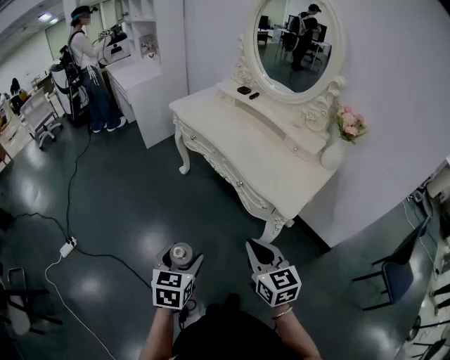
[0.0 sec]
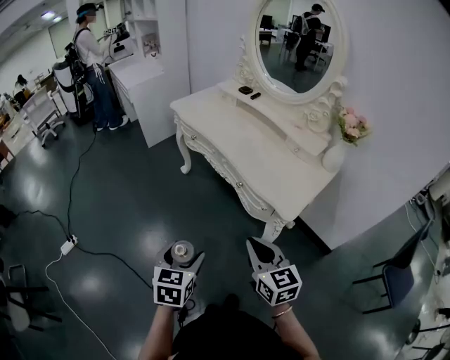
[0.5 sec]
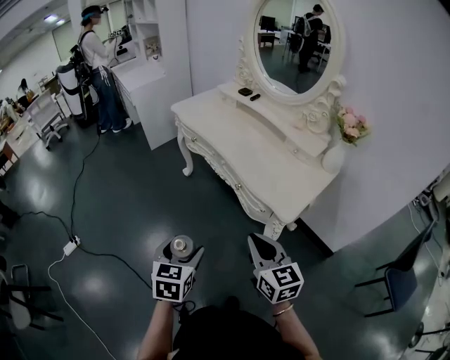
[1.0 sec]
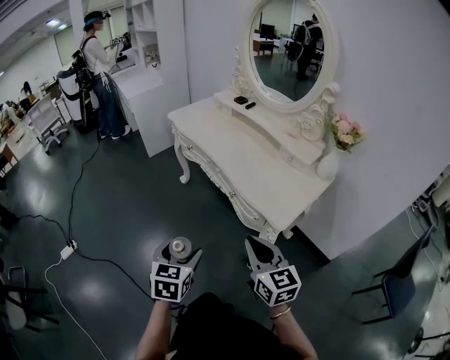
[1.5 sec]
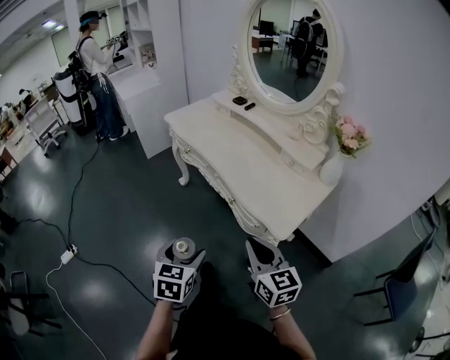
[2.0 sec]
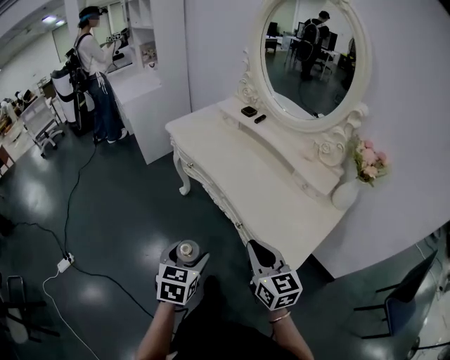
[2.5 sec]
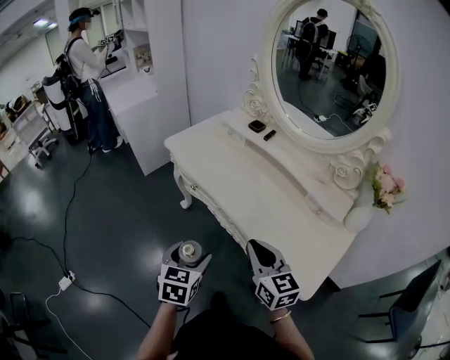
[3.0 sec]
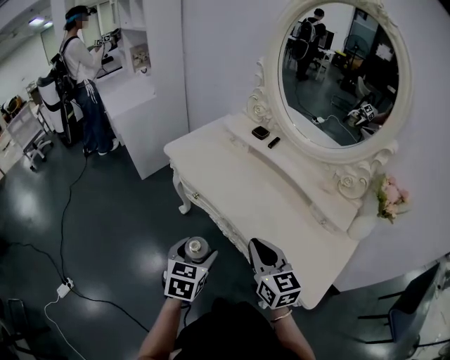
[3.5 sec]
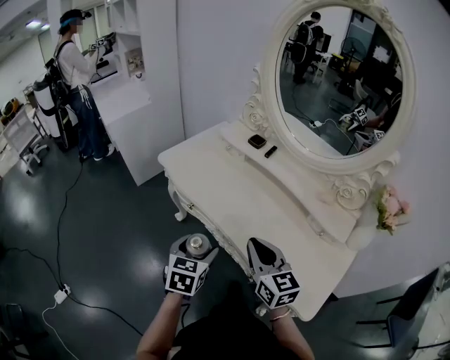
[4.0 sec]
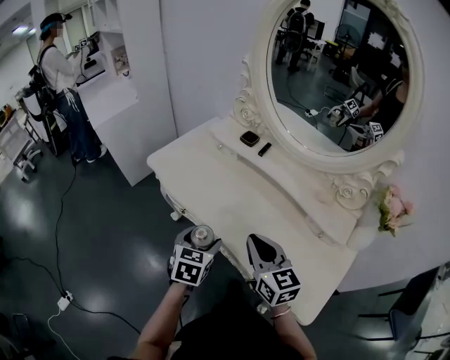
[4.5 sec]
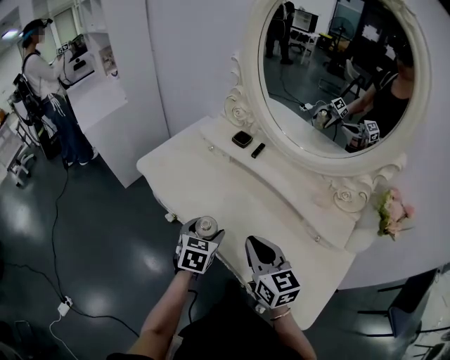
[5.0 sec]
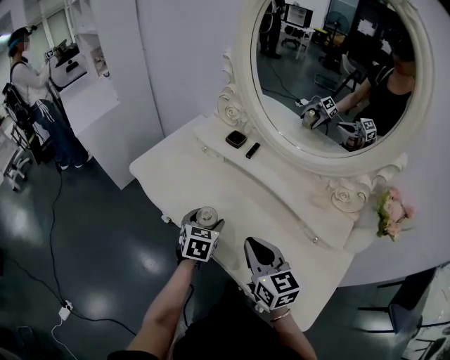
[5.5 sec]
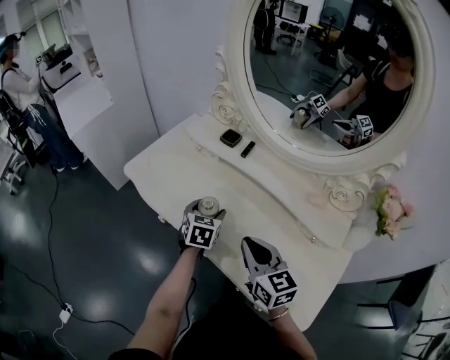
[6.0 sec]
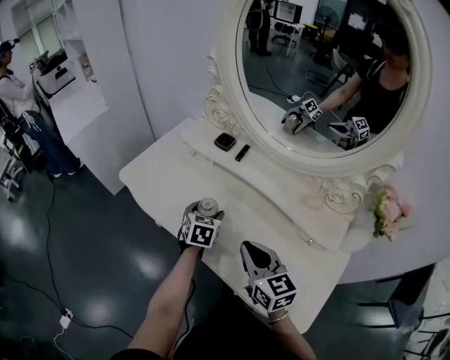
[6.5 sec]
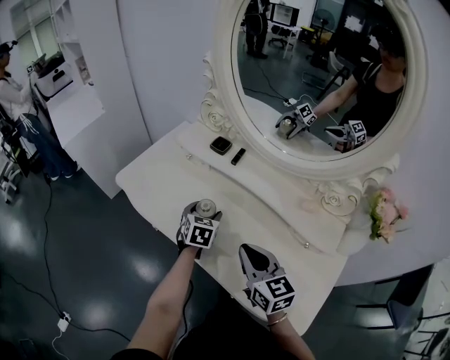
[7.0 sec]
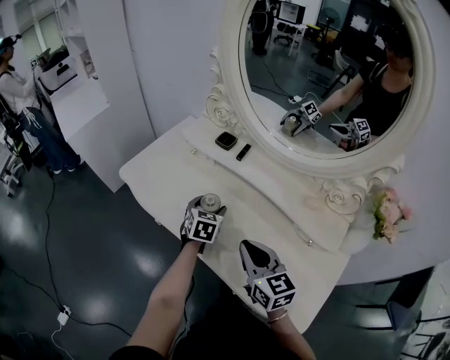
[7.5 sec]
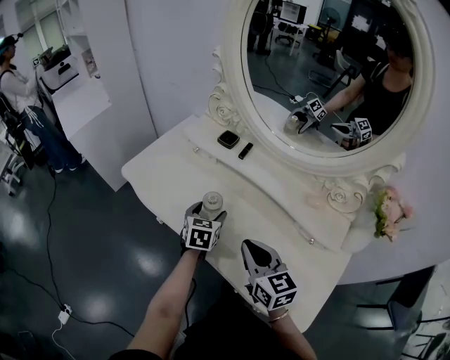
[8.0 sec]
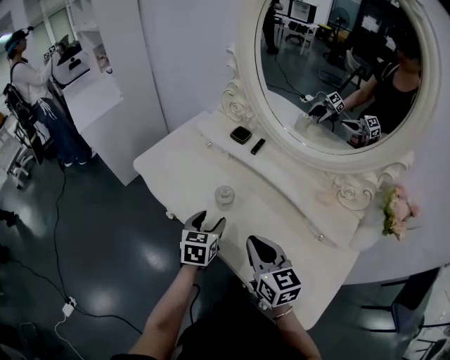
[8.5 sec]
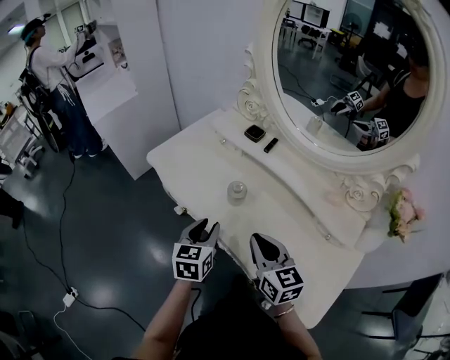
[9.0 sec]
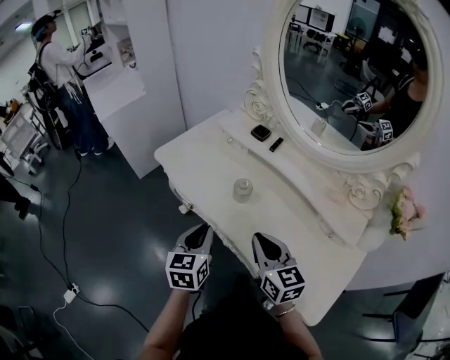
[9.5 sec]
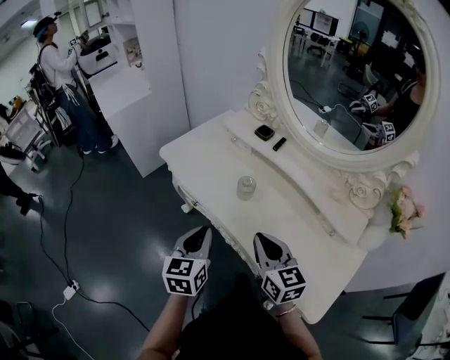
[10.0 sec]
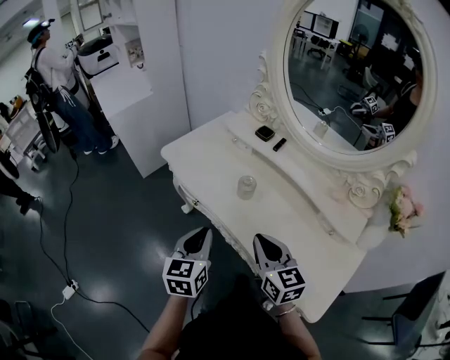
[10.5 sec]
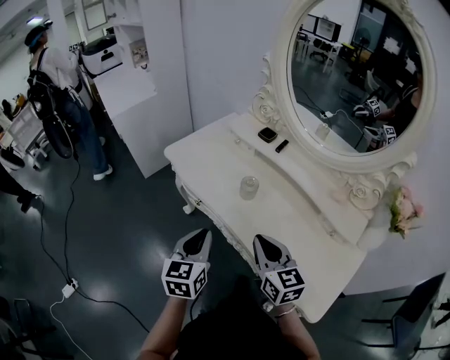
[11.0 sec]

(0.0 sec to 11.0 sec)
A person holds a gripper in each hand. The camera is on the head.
0.0 sec - 2.0 sec: The two grippers go approximately 10 cm forward and to the right.
2.0 sec - 3.5 sec: The two grippers go about 30 cm forward.
3.5 sec - 5.5 sec: The right gripper travels forward and to the right by approximately 15 cm; the left gripper heads forward and to the right, covering approximately 25 cm.
5.5 sec - 7.5 sec: The left gripper moves forward, approximately 5 cm.
7.5 sec - 9.0 sec: The left gripper shifts approximately 20 cm backward, to the left and upward, and closes up.
9.0 sec - 11.0 sec: The right gripper ends up about 5 cm from where it was, while the left gripper moves backward, to the left and upward, approximately 10 cm.

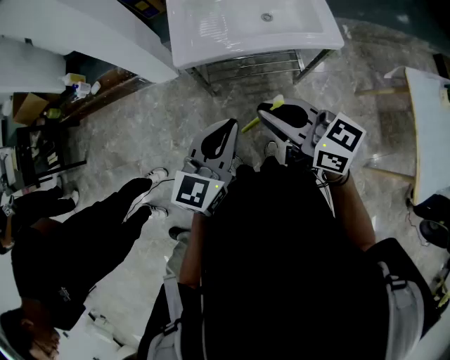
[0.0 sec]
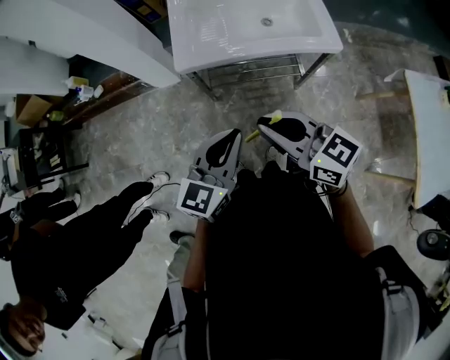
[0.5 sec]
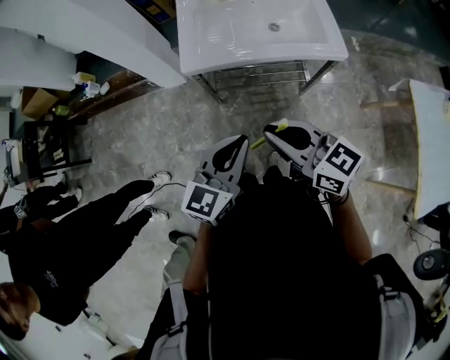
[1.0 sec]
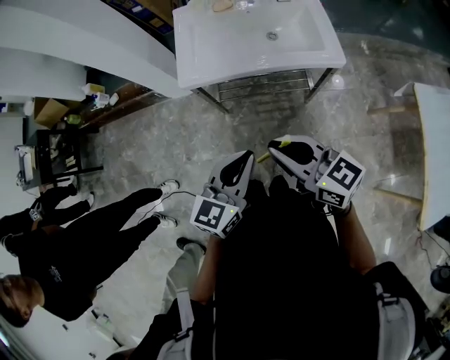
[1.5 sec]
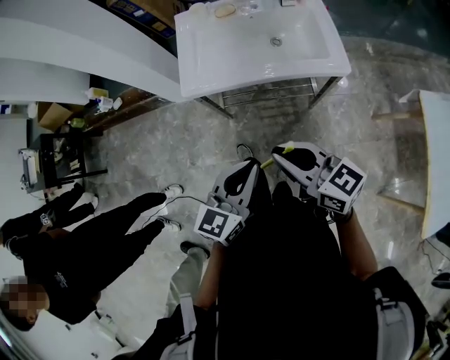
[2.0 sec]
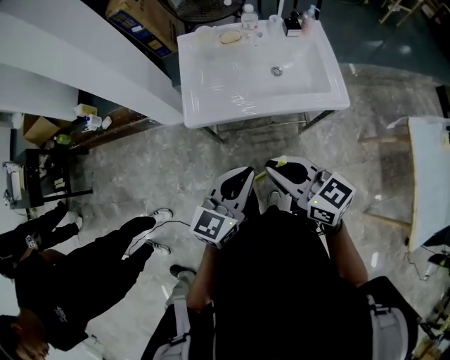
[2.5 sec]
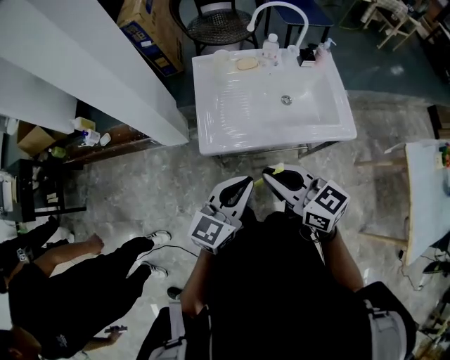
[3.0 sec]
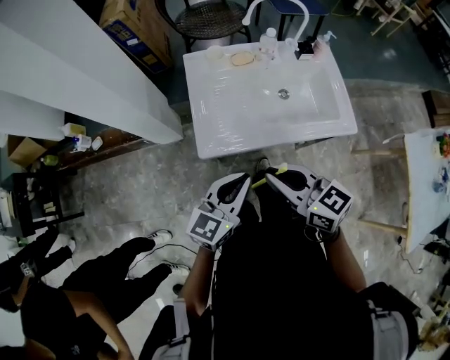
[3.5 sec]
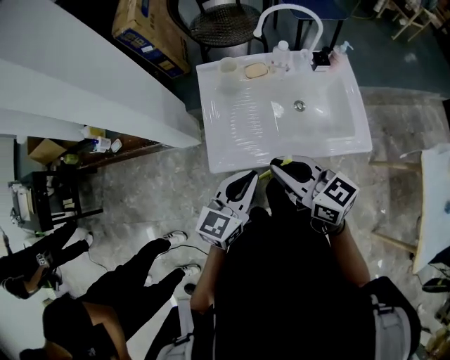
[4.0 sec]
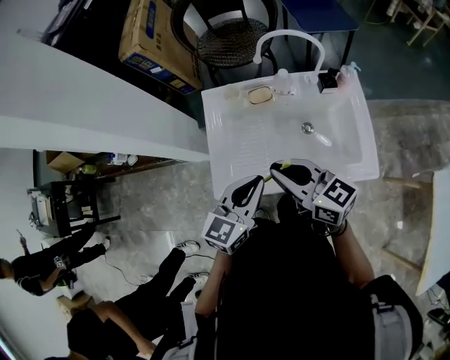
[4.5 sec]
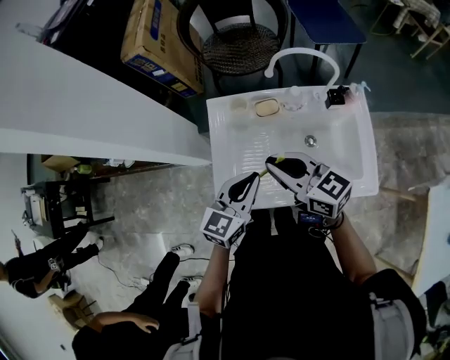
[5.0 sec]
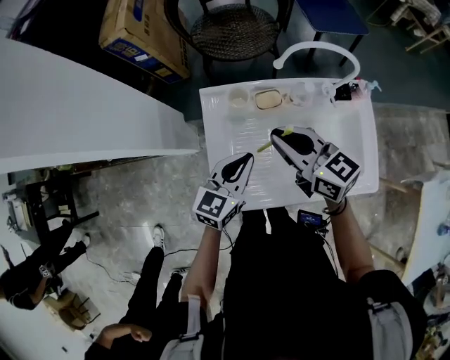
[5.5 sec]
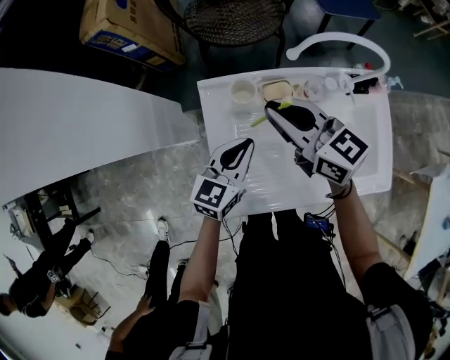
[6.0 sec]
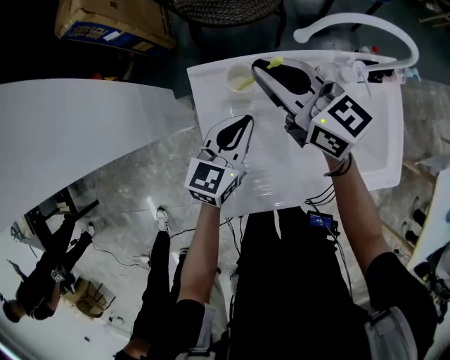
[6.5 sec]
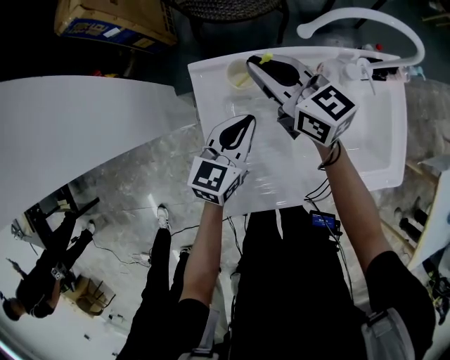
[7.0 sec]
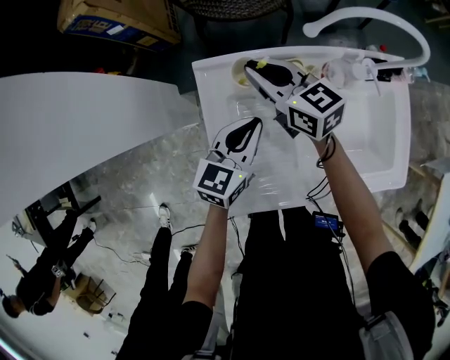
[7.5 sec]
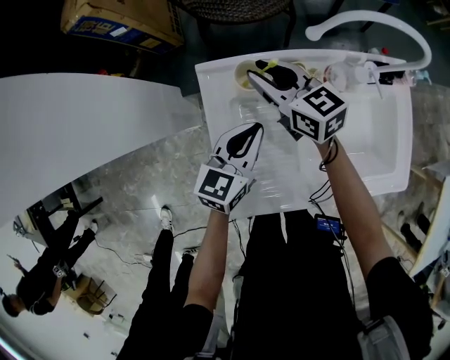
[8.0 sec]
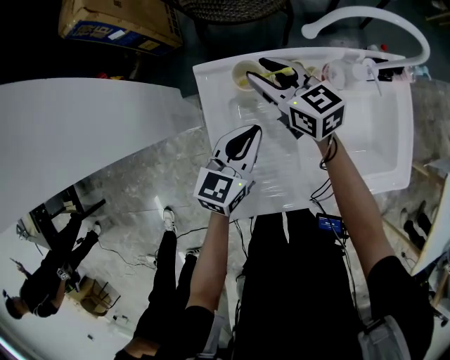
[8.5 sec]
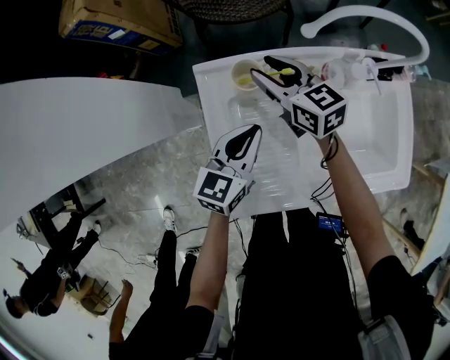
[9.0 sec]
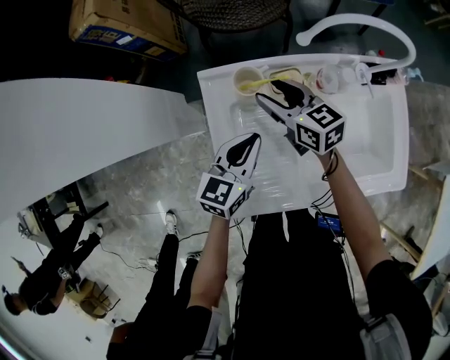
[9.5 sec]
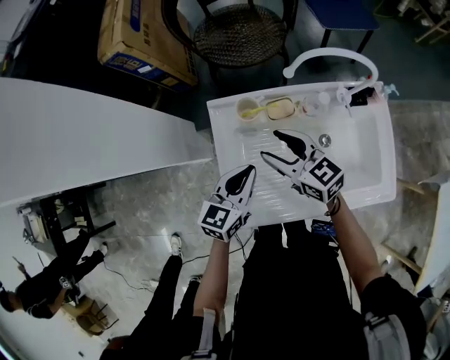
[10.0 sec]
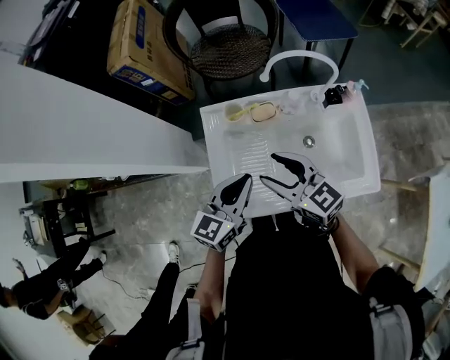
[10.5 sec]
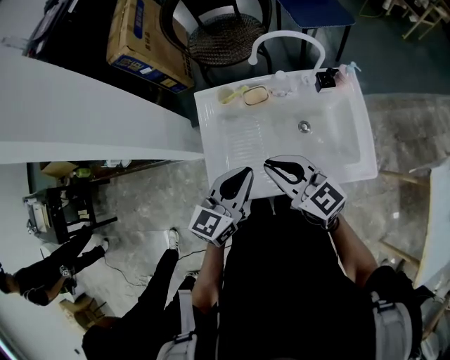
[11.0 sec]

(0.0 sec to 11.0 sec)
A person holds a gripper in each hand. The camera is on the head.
0.0 sec - 2.0 sec: The two grippers go roughly 5 cm to the right.
2.0 sec - 3.5 sec: The two grippers go about 25 cm forward and to the left.
3.5 sec - 5.5 sec: The two grippers go approximately 30 cm forward.
5.5 sec - 7.5 sec: The left gripper moves downward and forward, approximately 15 cm. The right gripper shifts roughly 20 cm forward and downward.
7.5 sec - 9.0 sec: The right gripper opens.
9.0 sec - 11.0 sec: The left gripper goes about 25 cm upward and backward. Meanwhile the right gripper travels backward and upward by roughly 35 cm, and closes up.

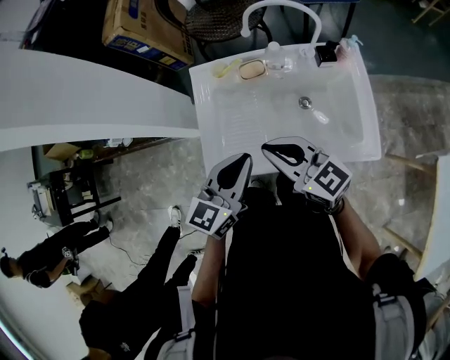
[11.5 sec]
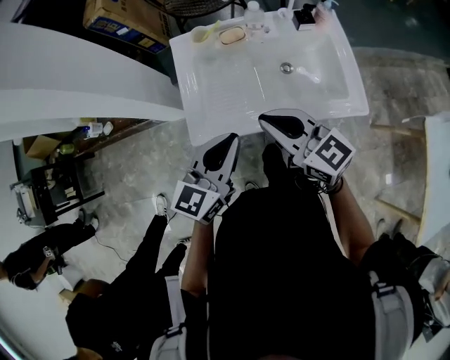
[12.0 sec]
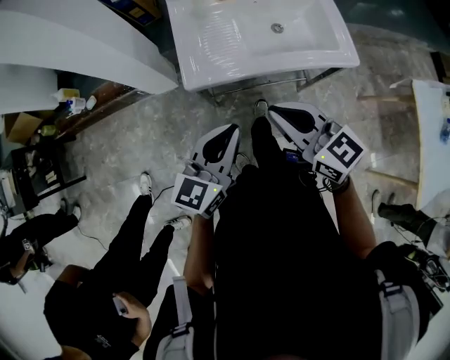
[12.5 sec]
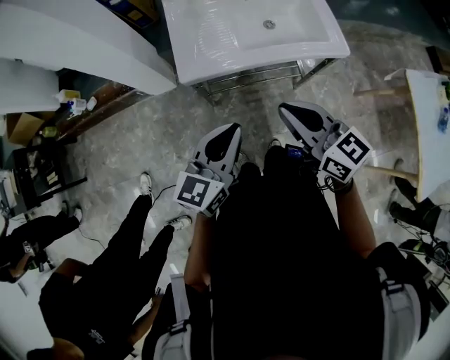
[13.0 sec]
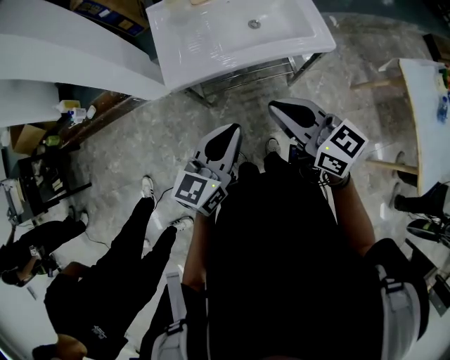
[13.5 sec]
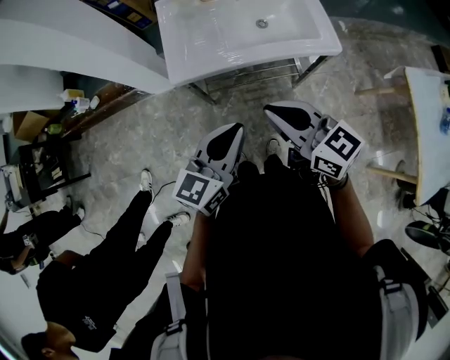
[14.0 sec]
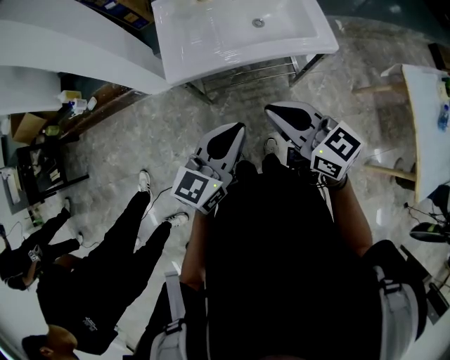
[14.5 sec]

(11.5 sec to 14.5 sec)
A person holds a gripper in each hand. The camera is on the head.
11.5 sec - 13.0 sec: The two grippers go approximately 30 cm backward.
13.0 sec - 14.5 sec: The left gripper heads to the right, covering some 5 cm.

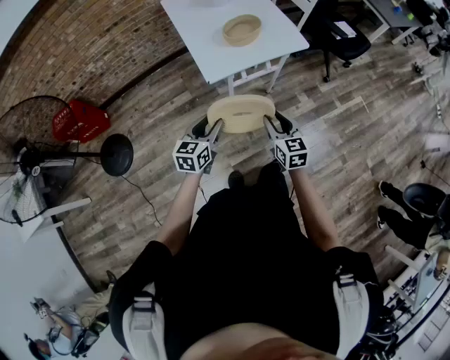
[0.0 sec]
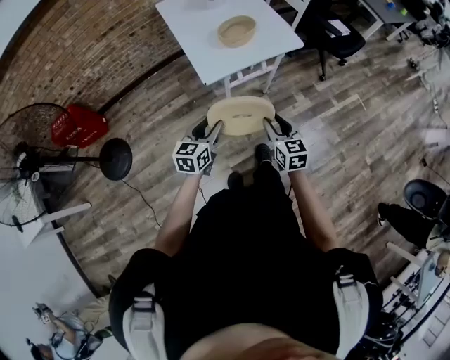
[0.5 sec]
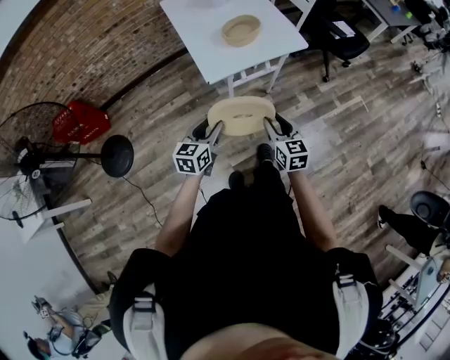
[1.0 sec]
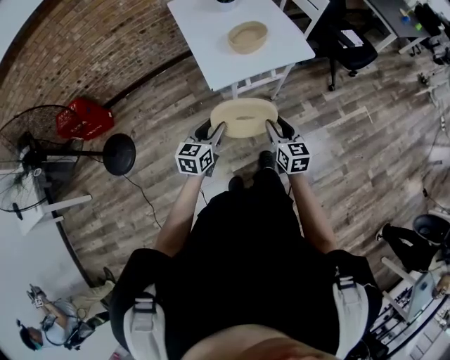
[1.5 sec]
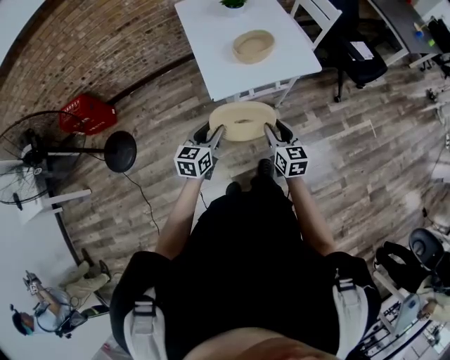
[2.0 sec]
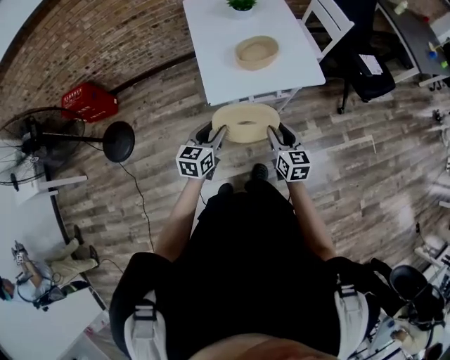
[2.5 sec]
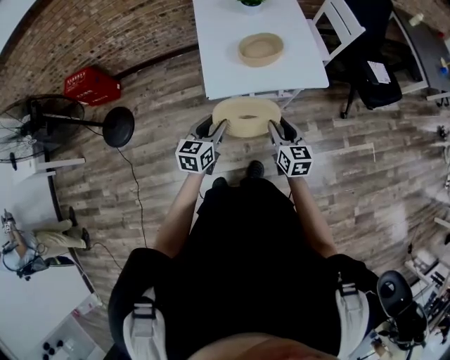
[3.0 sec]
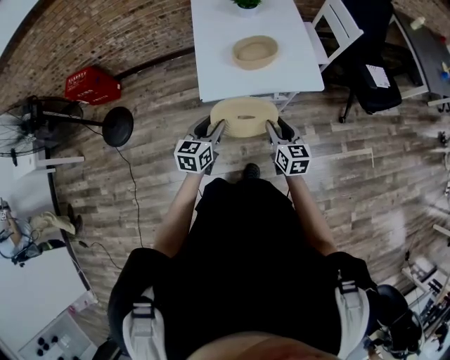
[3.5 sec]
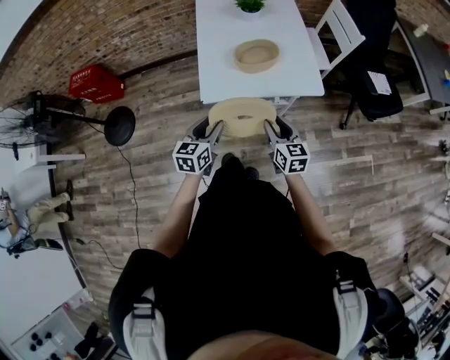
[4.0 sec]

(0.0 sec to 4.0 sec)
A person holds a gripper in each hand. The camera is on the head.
0.0 sec - 2.0 sec: Both grippers move forward, approximately 10 cm.
2.0 sec - 4.0 sec: Both grippers move to the right and forward, about 15 cm.
